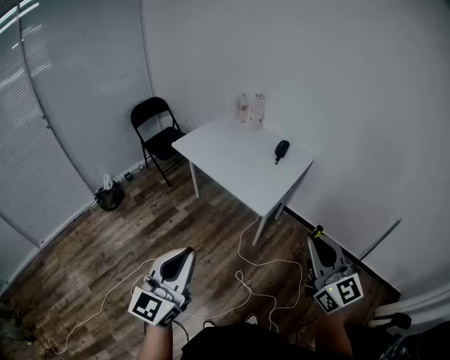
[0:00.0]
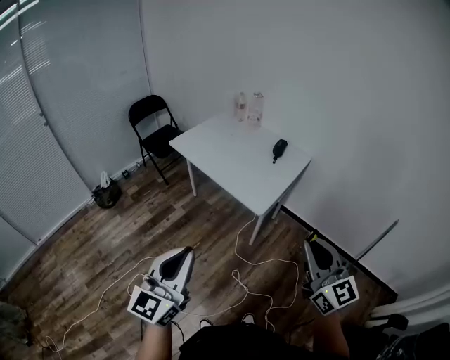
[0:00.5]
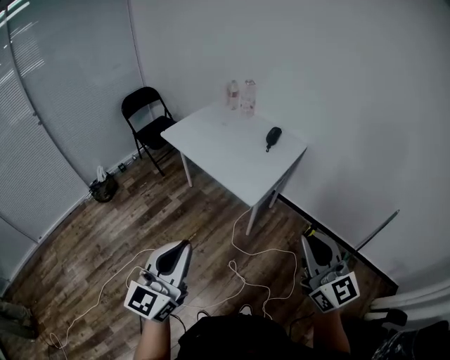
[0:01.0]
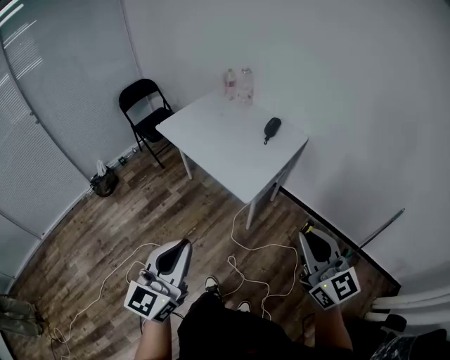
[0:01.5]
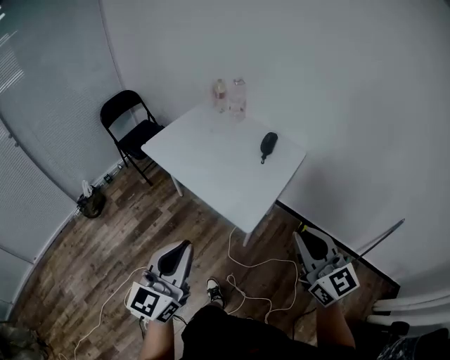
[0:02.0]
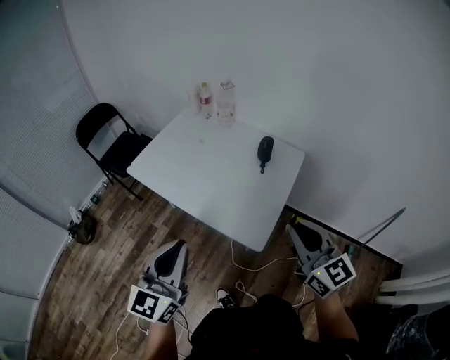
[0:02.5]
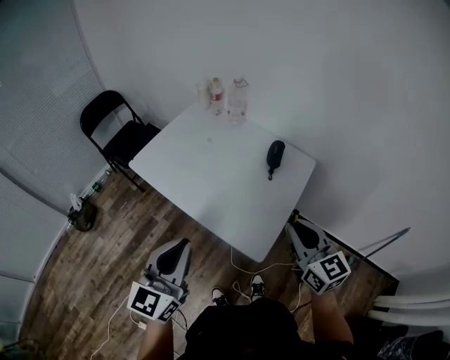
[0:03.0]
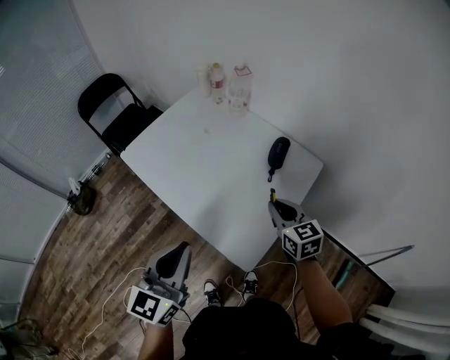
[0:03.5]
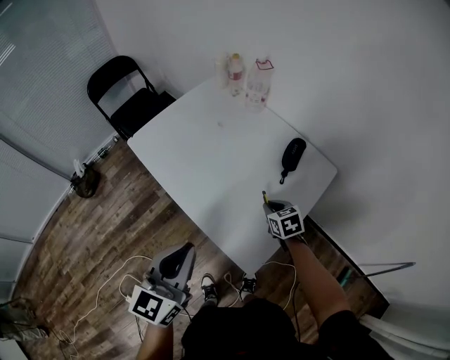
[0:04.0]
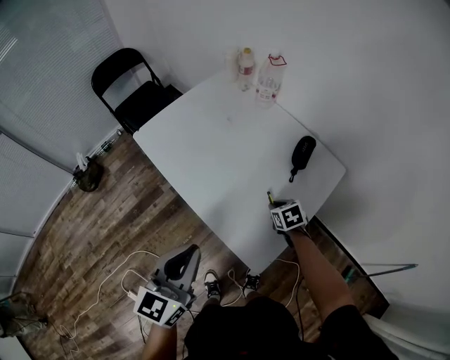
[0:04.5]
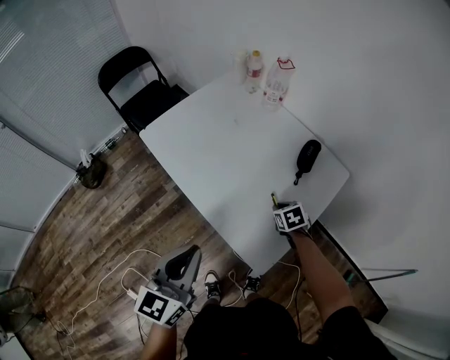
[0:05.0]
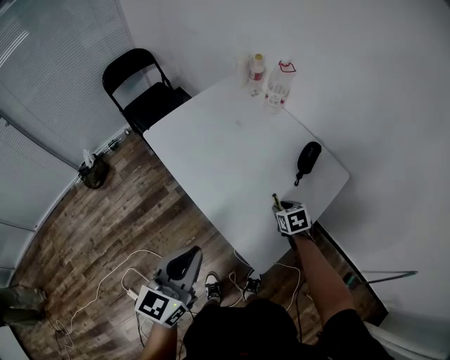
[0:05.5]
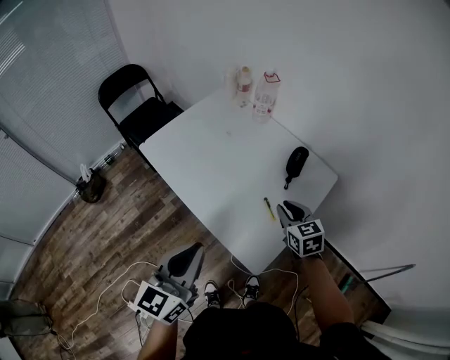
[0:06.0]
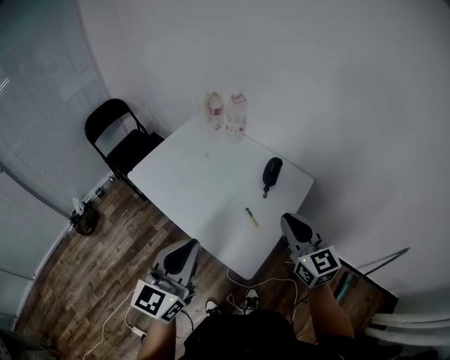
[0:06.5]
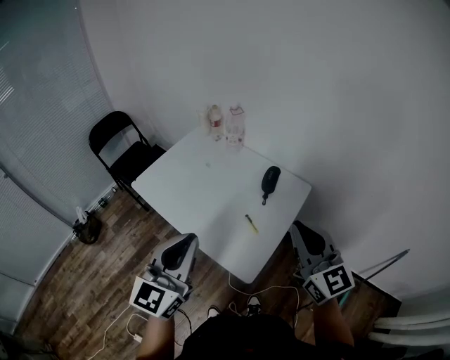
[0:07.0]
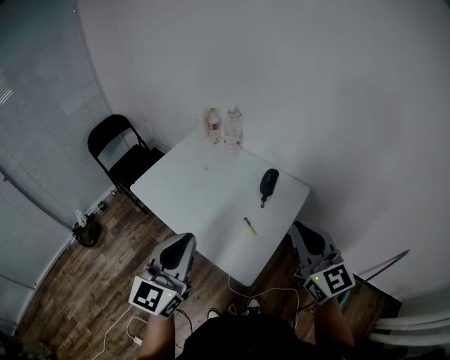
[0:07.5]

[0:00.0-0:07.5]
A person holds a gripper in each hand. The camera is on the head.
0:00.0 to 0:02.0: The grippers both shift forward by roughly 20 cm.
0:02.0 to 0:04.0: The right gripper heads forward and downward, covering approximately 50 cm, and tips its fingers downward by about 50 degrees; the left gripper travels forward by about 30 cm.
0:04.0 to 0:05.5: The right gripper opens.
0:05.5 to 0:07.5: The left gripper shifts some 15 cm upward, and changes its angle by some 20 degrees; the right gripper is displaced upward and backward by about 50 cm, angles its fingers upward, by about 60 degrees, and closes its fingers.

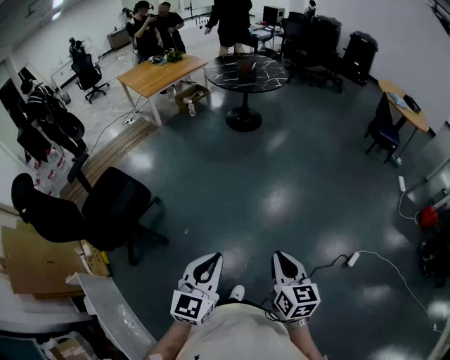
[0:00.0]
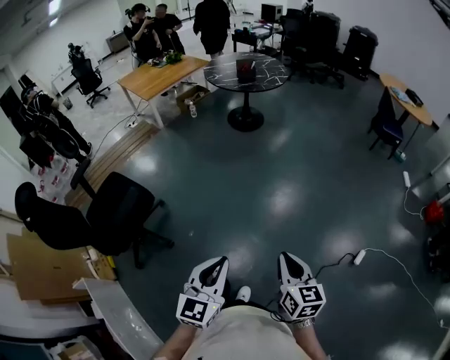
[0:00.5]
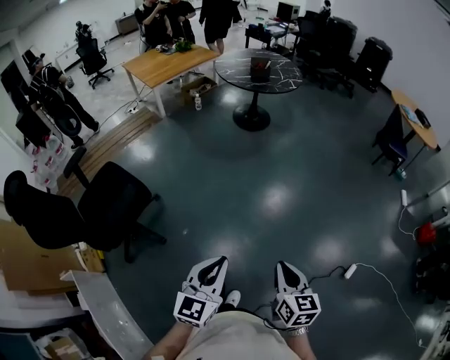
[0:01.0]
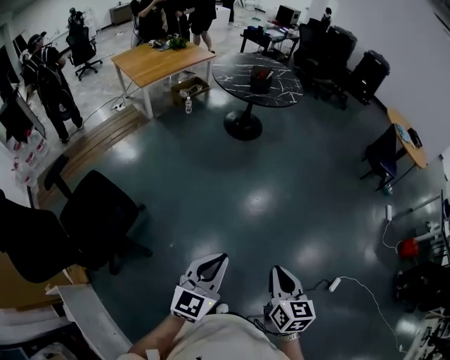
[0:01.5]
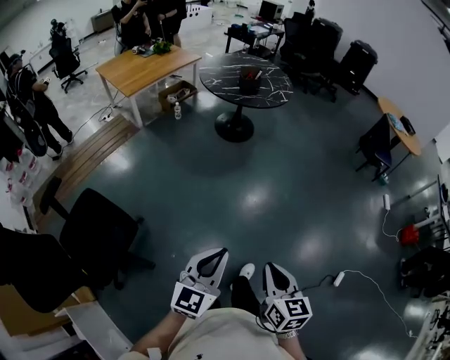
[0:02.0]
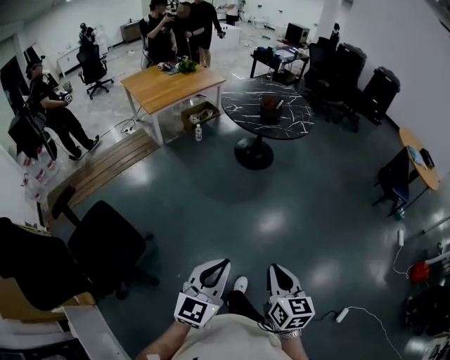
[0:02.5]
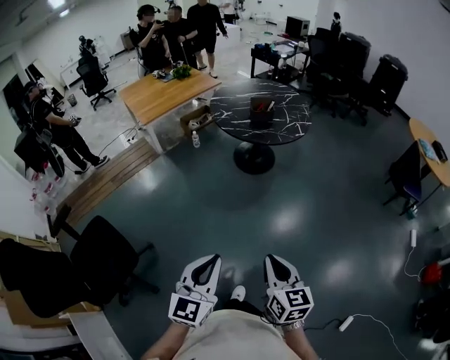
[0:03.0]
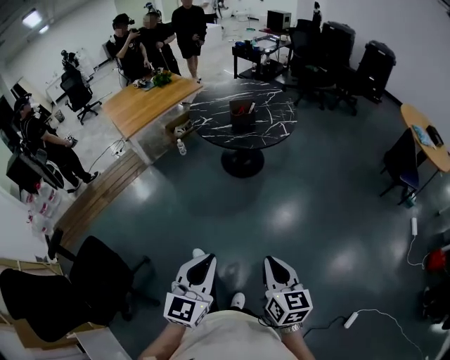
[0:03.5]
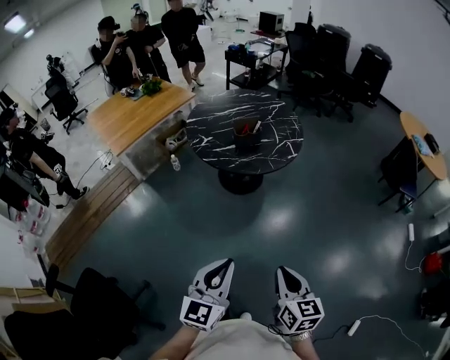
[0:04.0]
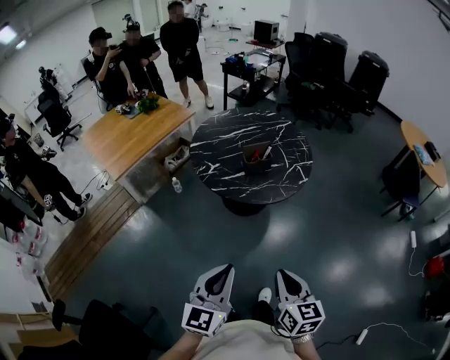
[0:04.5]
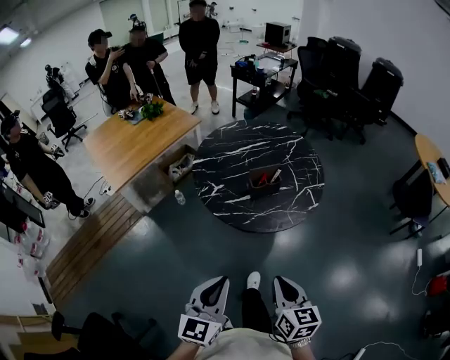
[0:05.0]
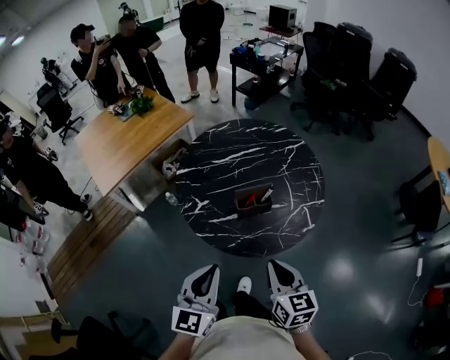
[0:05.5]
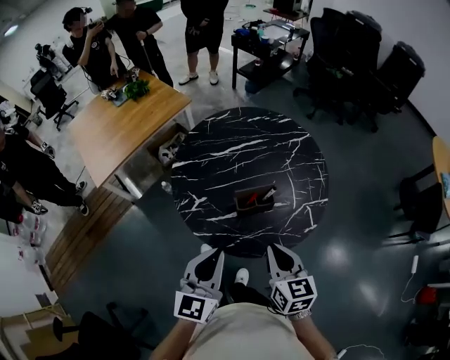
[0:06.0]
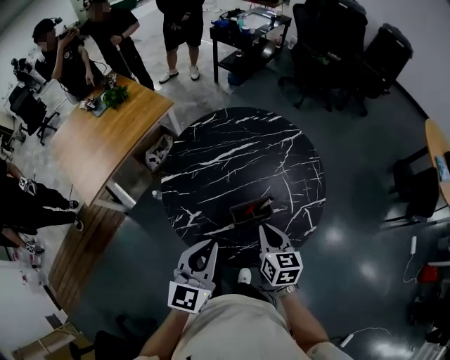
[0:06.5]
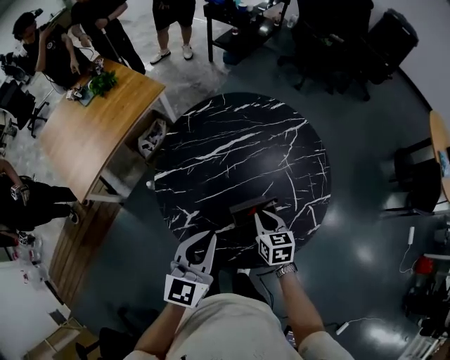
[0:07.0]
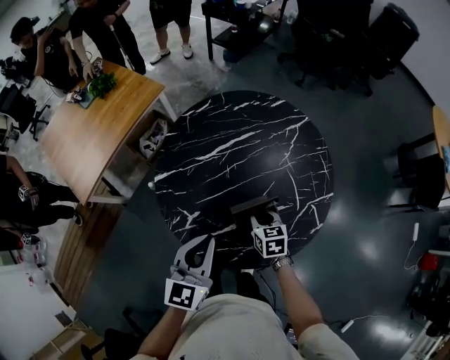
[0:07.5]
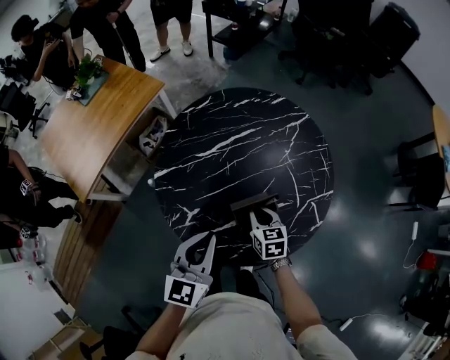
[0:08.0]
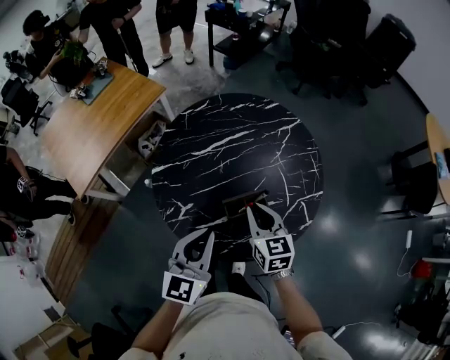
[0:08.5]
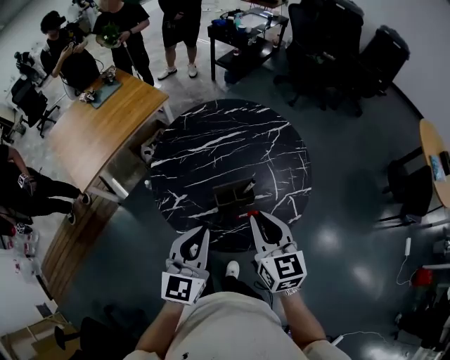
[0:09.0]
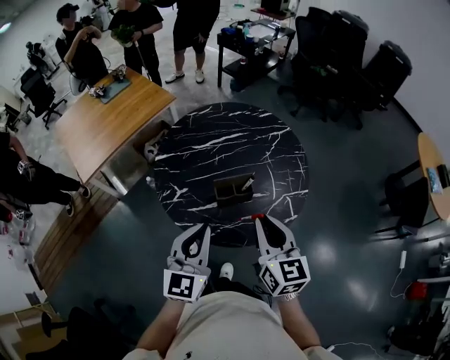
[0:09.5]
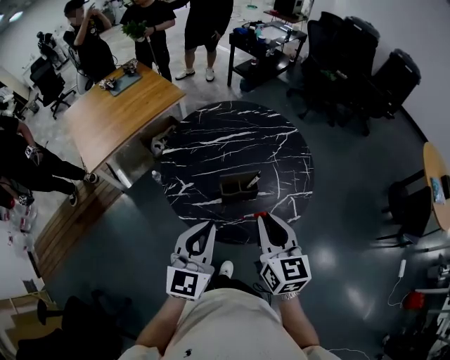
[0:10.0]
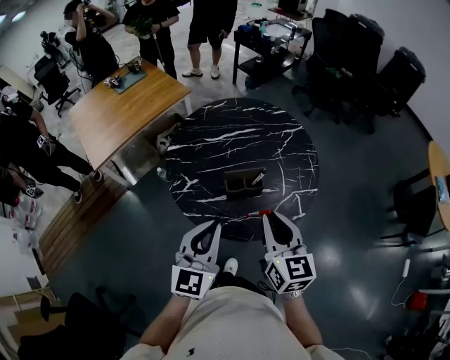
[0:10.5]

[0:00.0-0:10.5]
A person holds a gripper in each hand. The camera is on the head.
0:00.0 to 0:02.0: Both grippers travel together forward and to the left, some 30 cm.
0:02.0 to 0:04.0: The pair of grippers is taken forward, some 50 cm.
0:04.0 to 0:06.5: The pair of grippers is taken forward, approximately 70 cm.
0:06.5 to 0:08.5: The right gripper goes roughly 5 cm forward, and reaches about 15 cm downward, then returns.
0:08.5 to 0:10.5: The left gripper shifts some 15 cm backward. The right gripper is displaced backward and upward by about 20 cm.

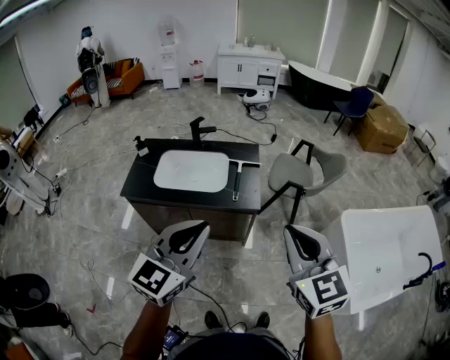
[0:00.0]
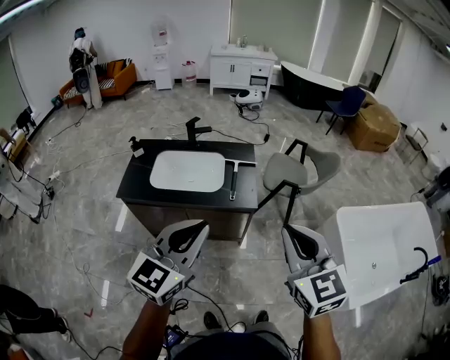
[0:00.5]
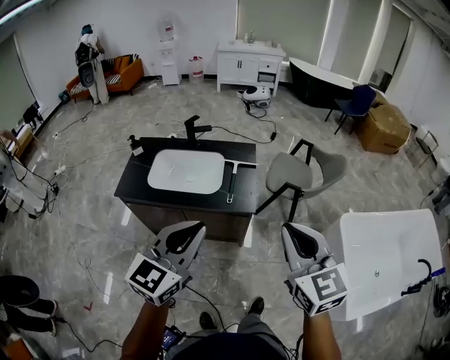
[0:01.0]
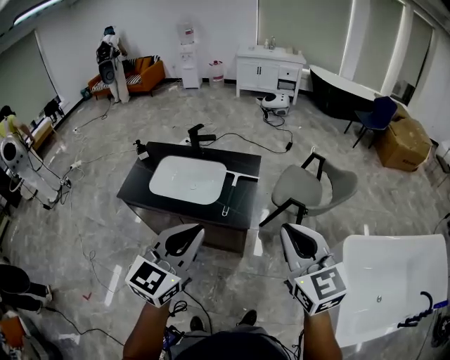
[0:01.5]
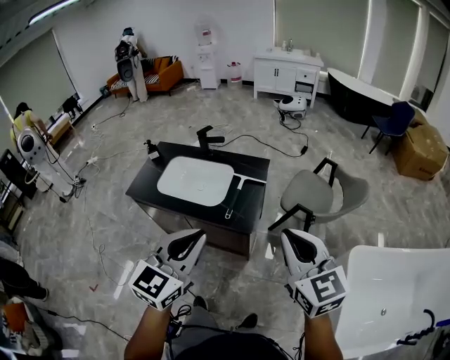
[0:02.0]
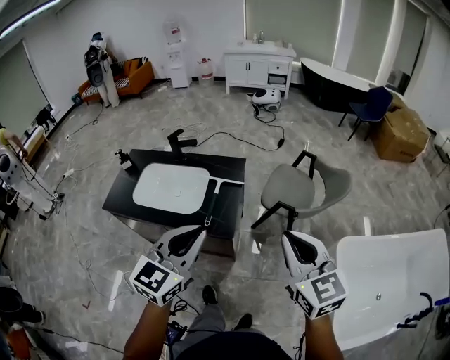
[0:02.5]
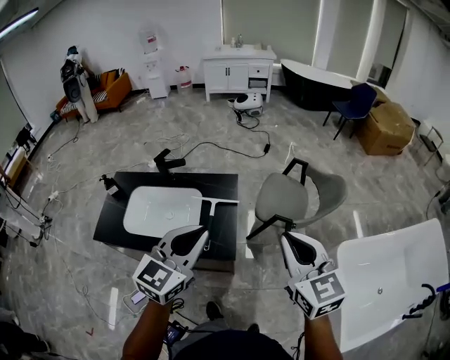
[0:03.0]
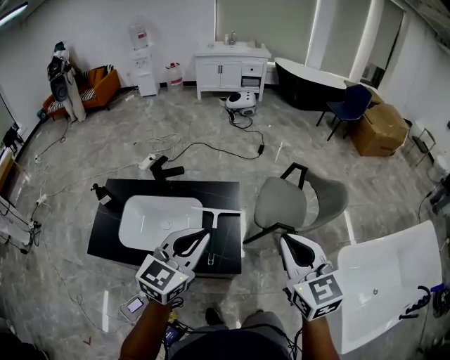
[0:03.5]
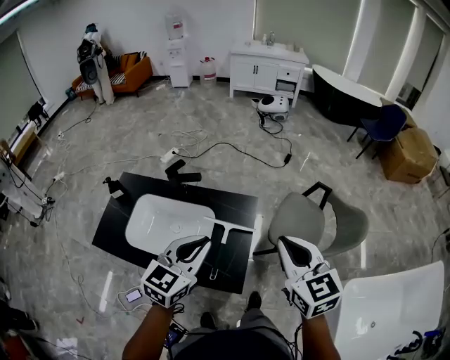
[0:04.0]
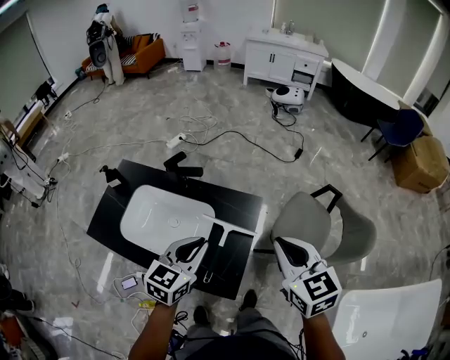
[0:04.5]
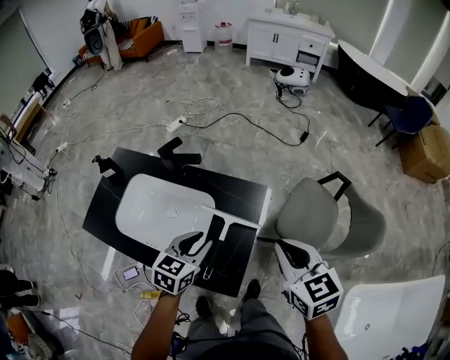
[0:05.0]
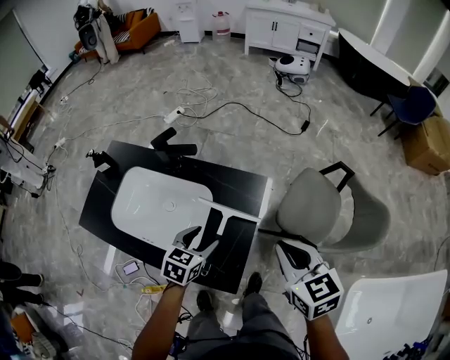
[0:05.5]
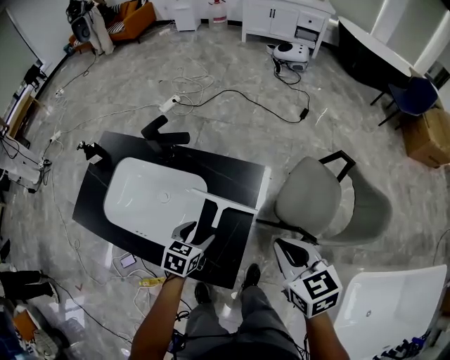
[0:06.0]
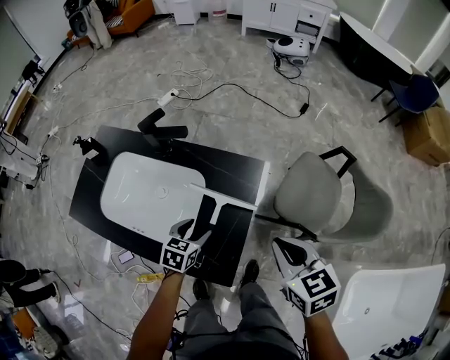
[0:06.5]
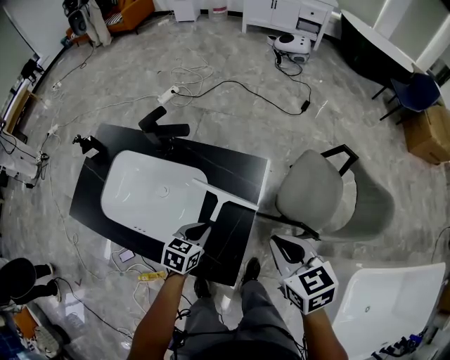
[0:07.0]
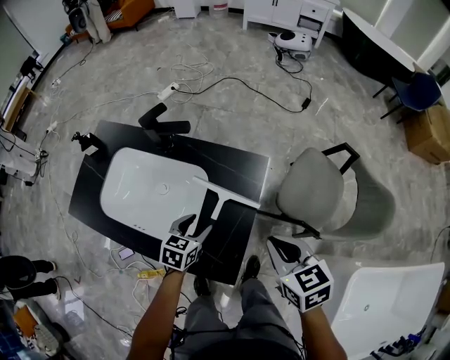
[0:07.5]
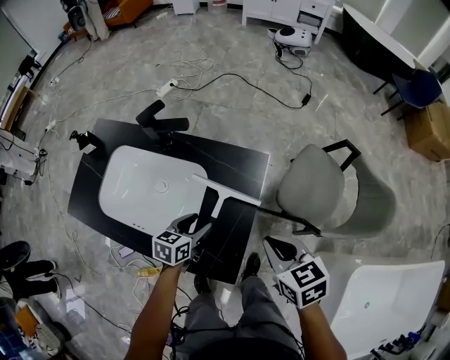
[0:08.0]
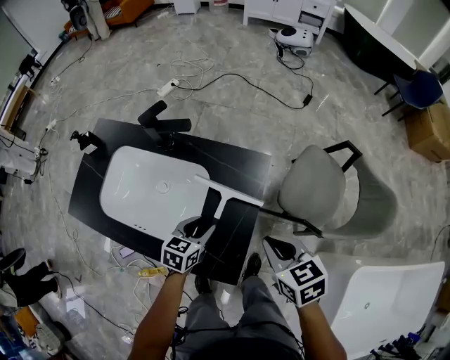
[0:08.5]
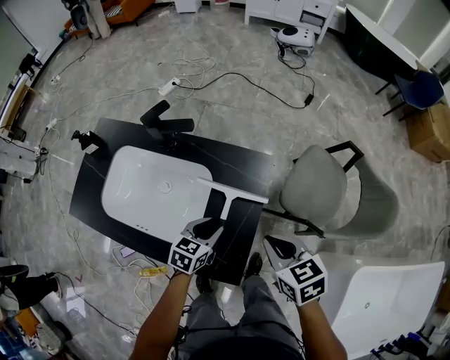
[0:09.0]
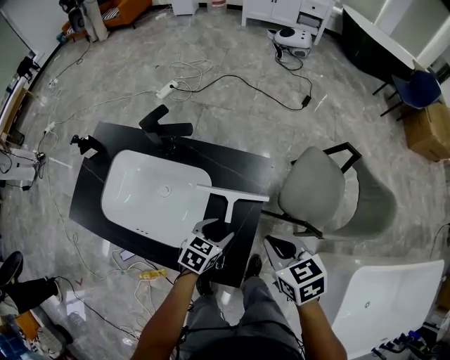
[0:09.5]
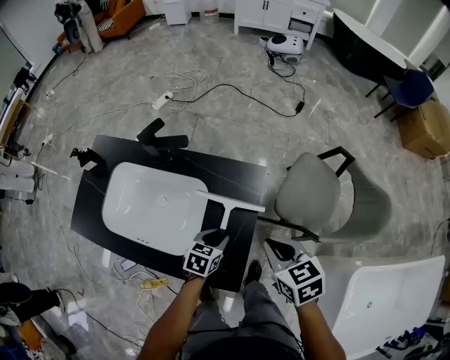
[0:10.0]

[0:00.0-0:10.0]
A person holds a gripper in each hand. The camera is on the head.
0:00.0 to 0:02.0: The right gripper heads forward and to the right, covering roughly 25 cm, while the left gripper travels to the right and forward by roughly 20 cm.
0:02.0 to 0:04.0: The two grippers go approximately 35 cm forward.
0:04.0 to 0:06.0: The left gripper moves downward, about 35 cm, angles its fingers downward, by about 30 degrees, and opens its fingers. Meanwhile the right gripper goes approximately 20 cm downward, and turns by approximately 20 degrees.
0:06.0 to 0:08.0: The right gripper travels downward by some 5 cm. Meanwhile the left gripper closes, then opens again.
0:08.0 to 0:10.0: The left gripper heads to the right, covering about 5 cm, and closes.
